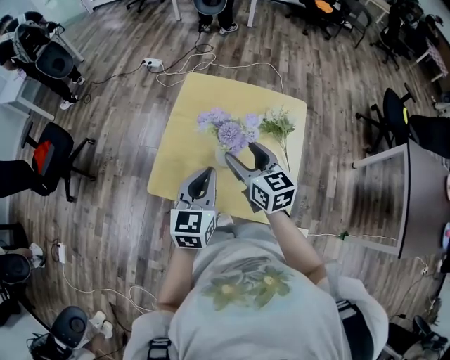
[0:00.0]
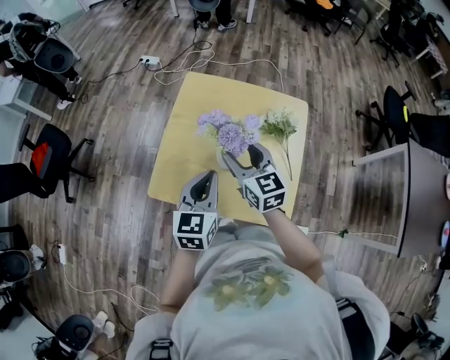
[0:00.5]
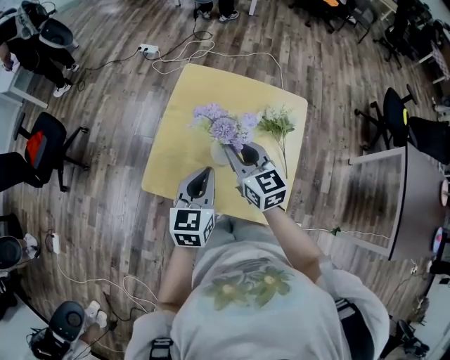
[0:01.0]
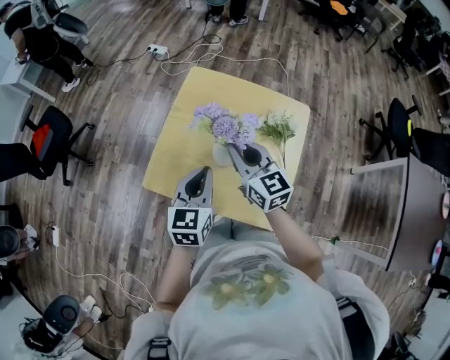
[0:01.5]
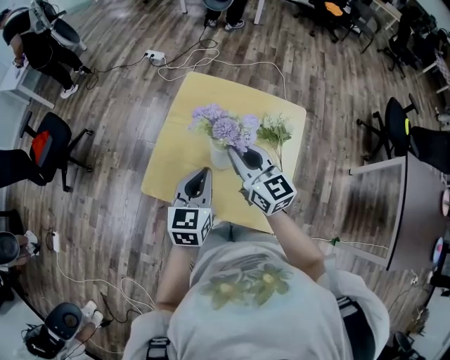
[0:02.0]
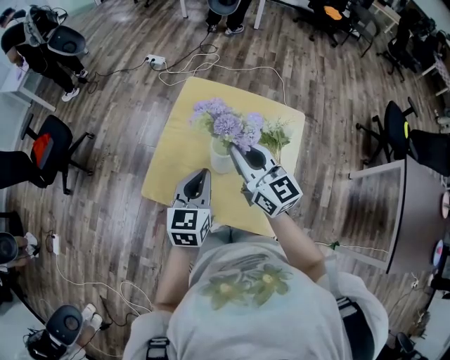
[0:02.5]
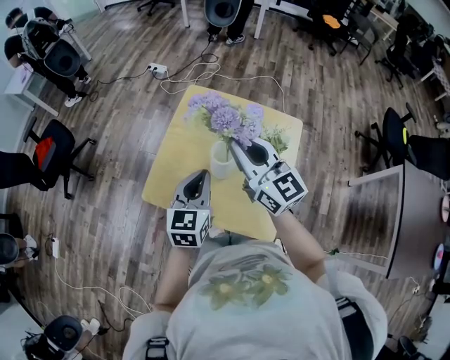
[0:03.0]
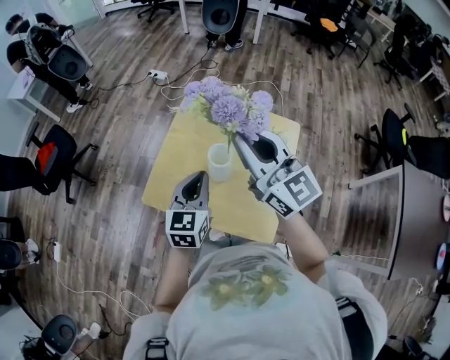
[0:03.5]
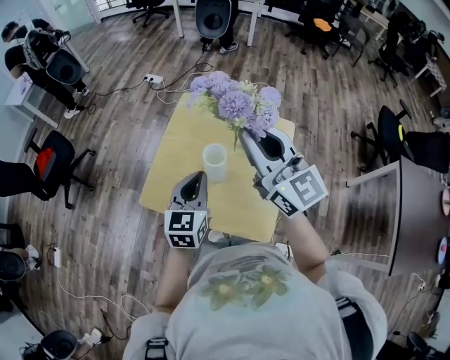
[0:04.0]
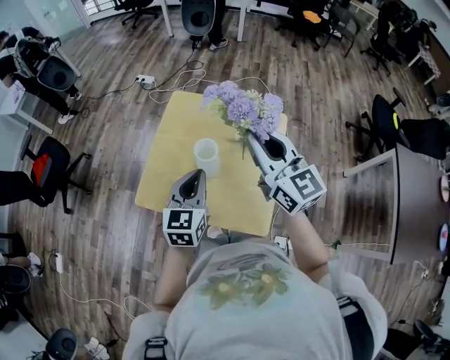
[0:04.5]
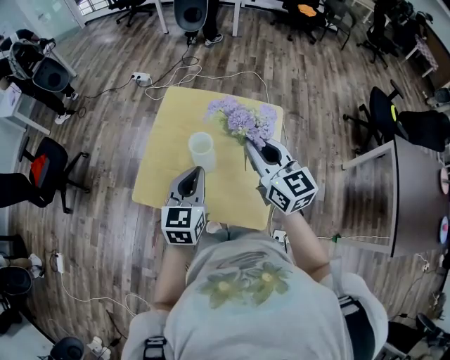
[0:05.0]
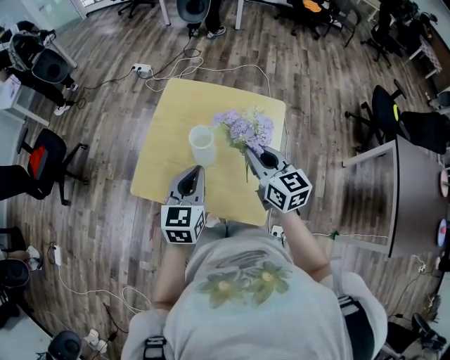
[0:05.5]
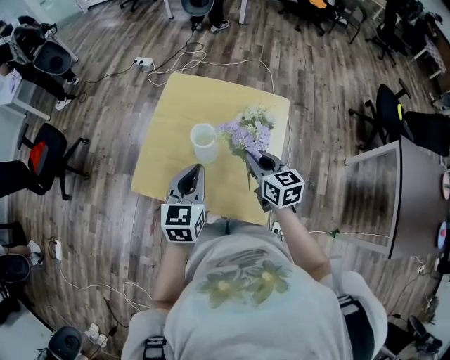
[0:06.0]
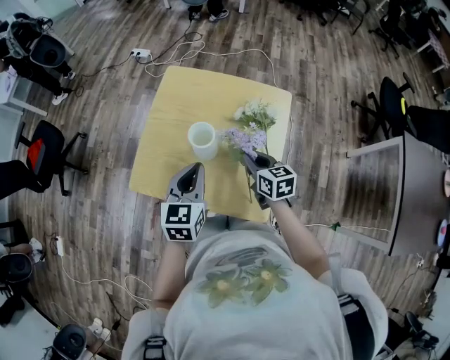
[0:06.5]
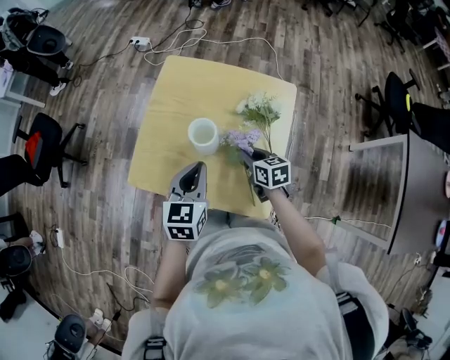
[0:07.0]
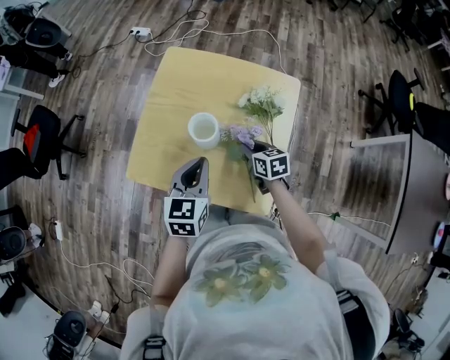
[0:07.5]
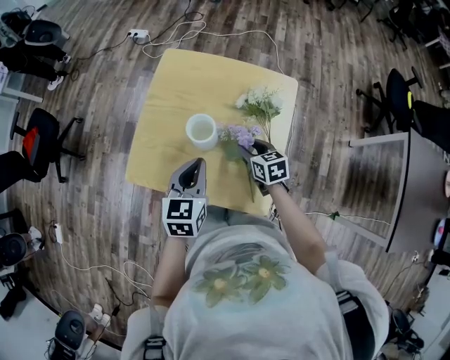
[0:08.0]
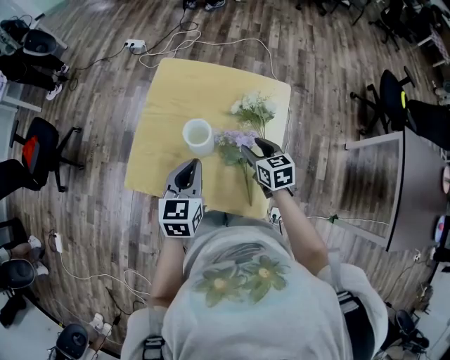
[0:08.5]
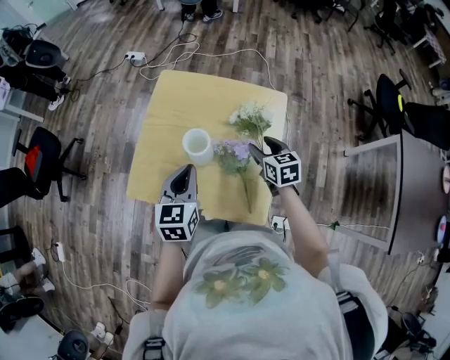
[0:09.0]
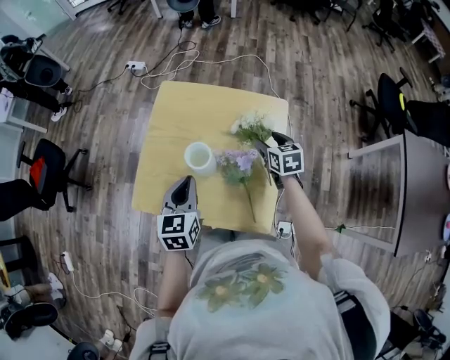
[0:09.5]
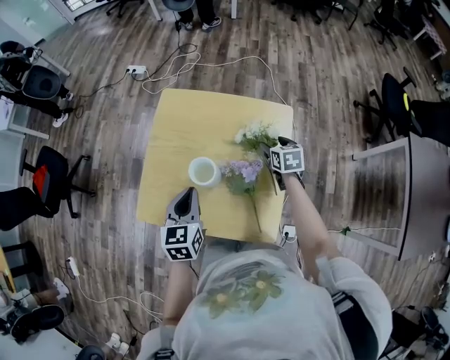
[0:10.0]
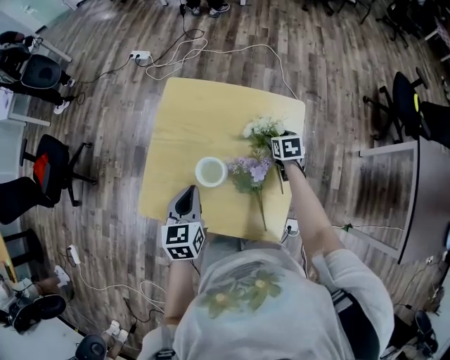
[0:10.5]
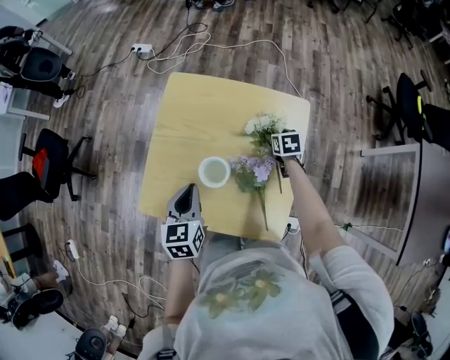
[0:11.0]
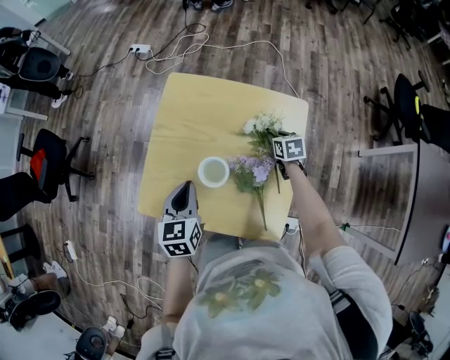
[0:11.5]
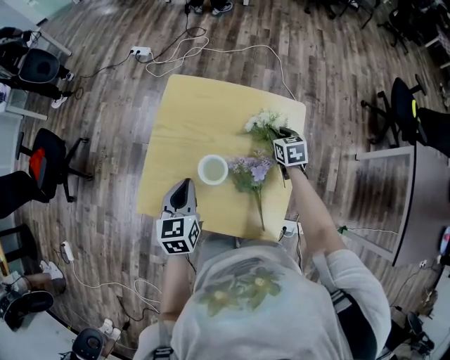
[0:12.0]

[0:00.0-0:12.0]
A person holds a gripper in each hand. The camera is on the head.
0:00.0 to 0:02.0: The right gripper moves about 5 cm, and closes.
0:02.0 to 0:04.0: The left gripper ends up approximately 5 cm from where it was. Meanwhile the right gripper goes some 20 cm upward.
0:04.0 to 0:06.0: The right gripper is displaced downward by roughly 25 cm, and points its fingers about 30 degrees further downward.
0:06.0 to 0:08.0: The left gripper goes about 5 cm downward, while the right gripper travels downward by roughly 15 cm, turns by approximately 20 degrees, and opens.
0:08.0 to 0:10.0: The left gripper is displaced forward by roughly 5 cm, while the right gripper moves to the right and forward, about 20 cm, and opens up.
0:10.0 to 0:12.0: The right gripper travels forward by some 5 cm, goes downward and returns, roughly 10 cm each way, and closes its fingers. The left gripper moves some 5 cm.

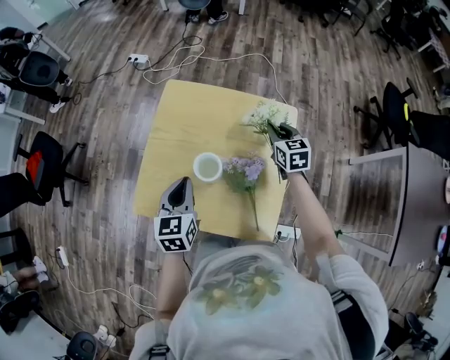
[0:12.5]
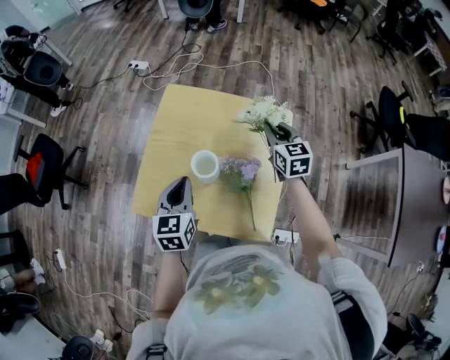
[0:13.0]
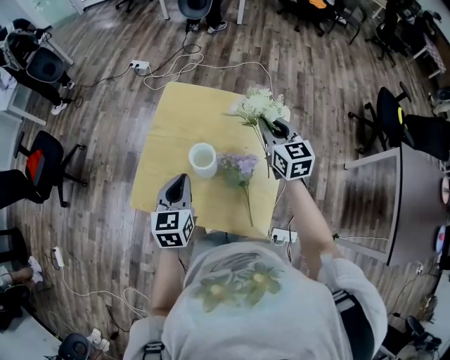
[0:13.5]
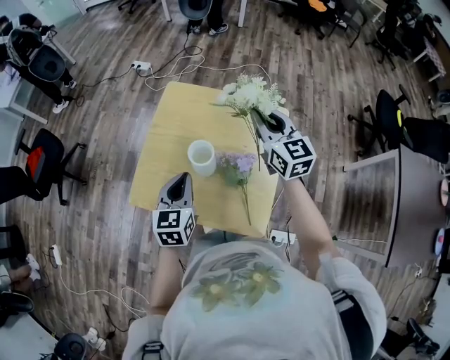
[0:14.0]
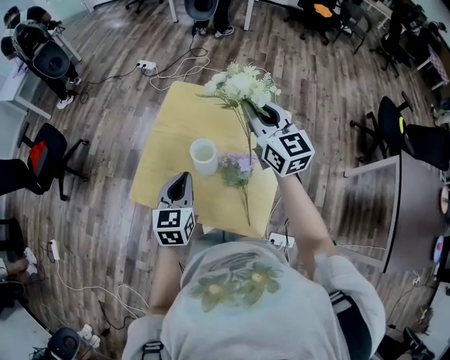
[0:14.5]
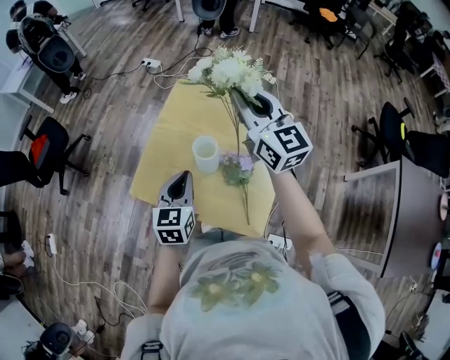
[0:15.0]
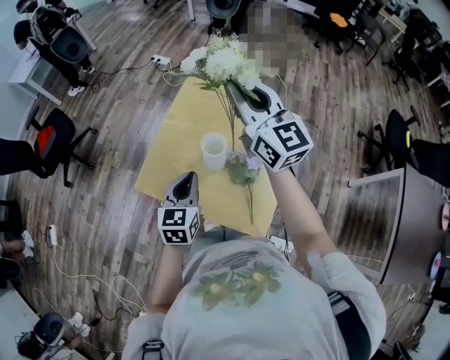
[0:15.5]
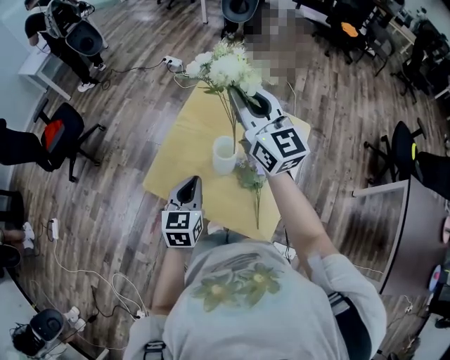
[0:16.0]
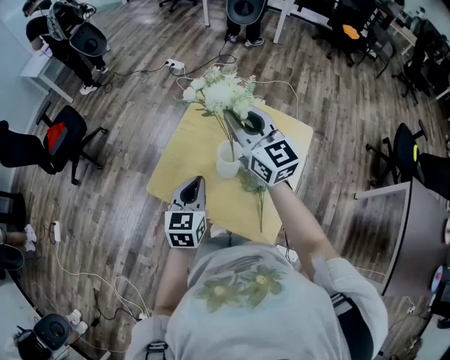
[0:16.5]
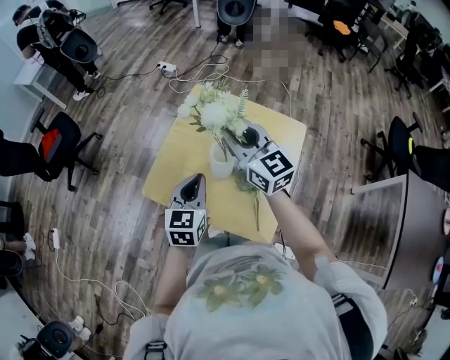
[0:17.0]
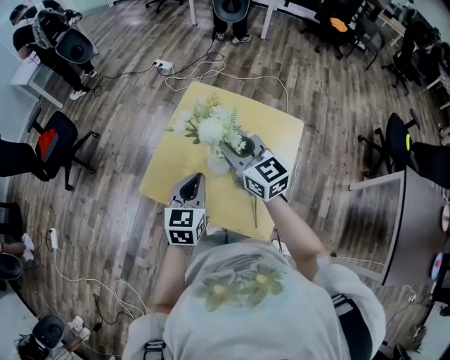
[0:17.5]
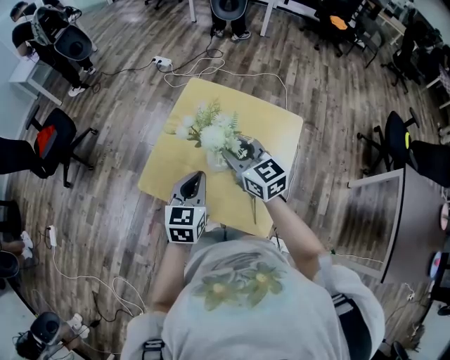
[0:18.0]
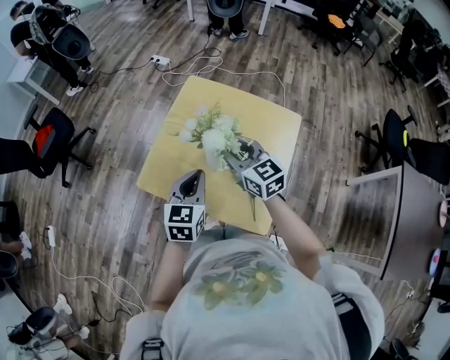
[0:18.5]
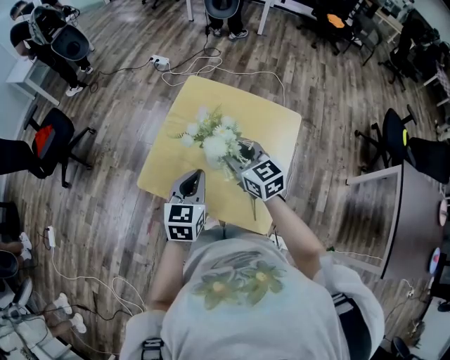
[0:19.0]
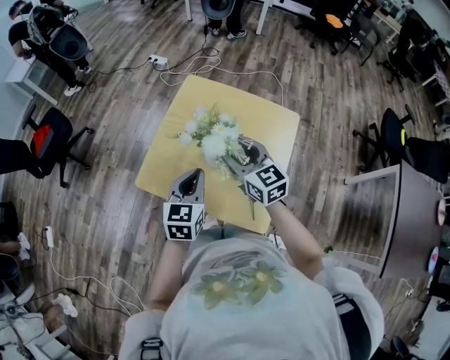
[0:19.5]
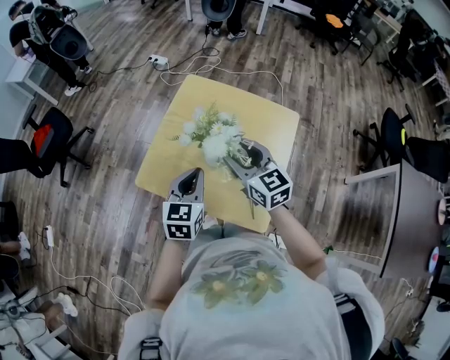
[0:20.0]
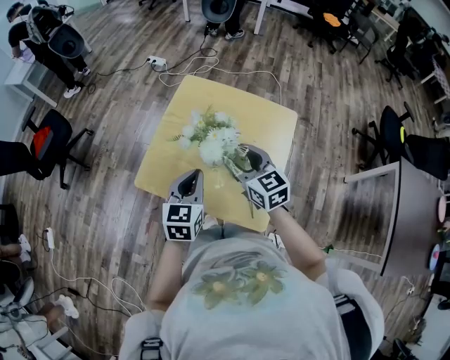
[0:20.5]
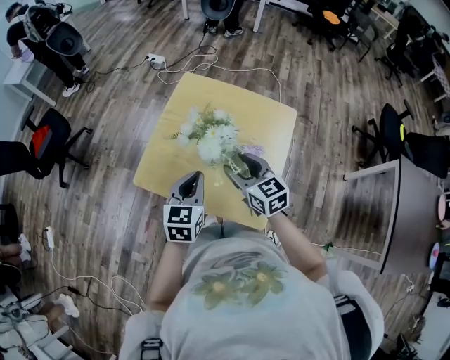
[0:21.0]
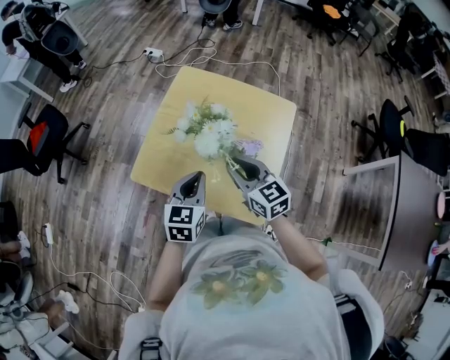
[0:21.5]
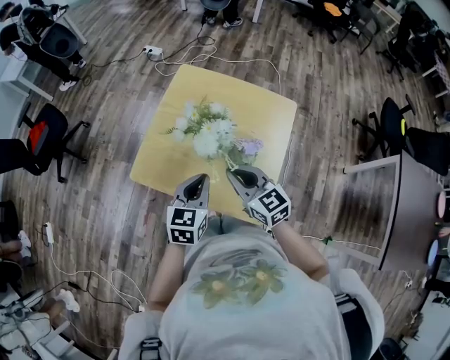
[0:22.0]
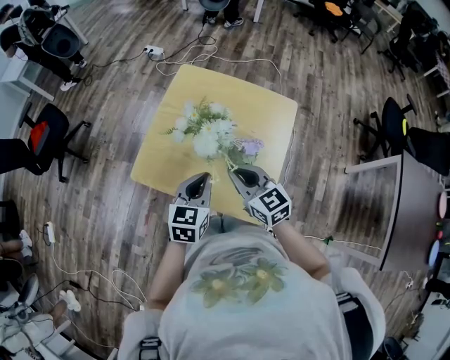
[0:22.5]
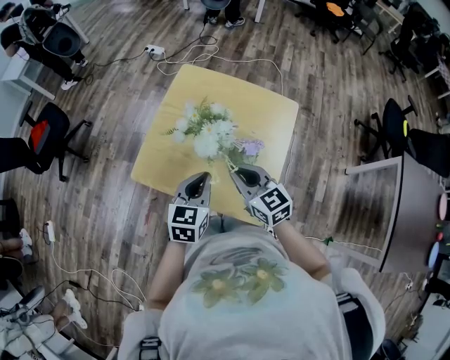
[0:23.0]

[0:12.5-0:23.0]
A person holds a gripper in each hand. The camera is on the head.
0:12.5 to 0:14.5: The right gripper shifts roughly 25 cm upward and to the left, and tilts its fingers some 30 degrees upward, while the left gripper is displaced backward by about 10 cm.
0:14.5 to 0:16.5: The left gripper is displaced to the left by roughly 5 cm; the right gripper shifts about 15 cm to the left.
0:16.5 to 0:19.0: The right gripper moves downward and backward, some 15 cm, and swivels some 20 degrees.
0:19.0 to 0:21.0: The right gripper shifts about 5 cm backward.
0:21.0 to 0:23.0: The right gripper closes its fingers.

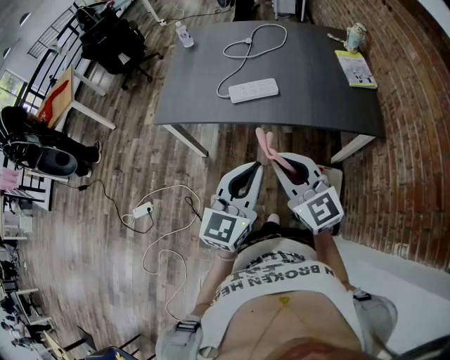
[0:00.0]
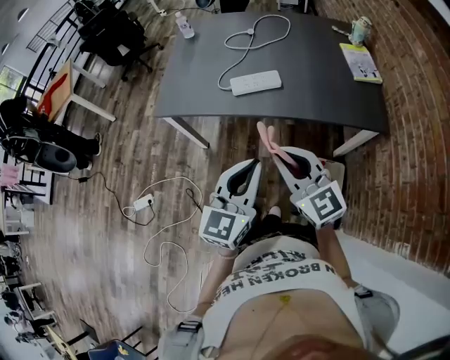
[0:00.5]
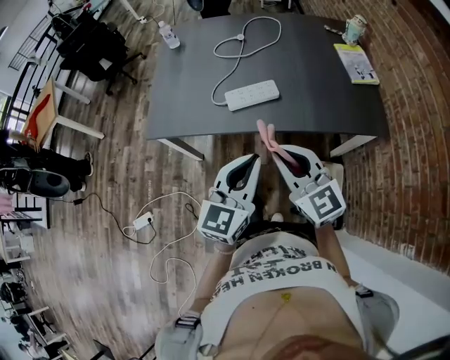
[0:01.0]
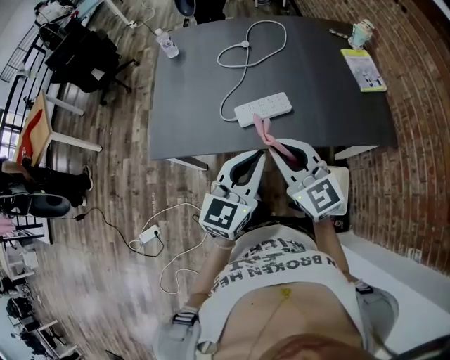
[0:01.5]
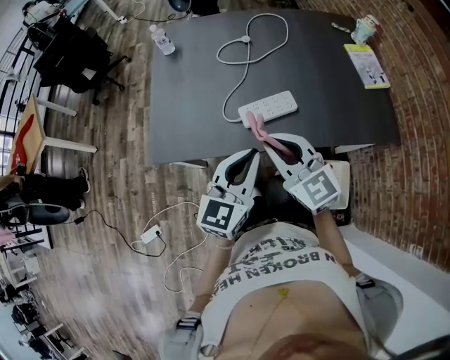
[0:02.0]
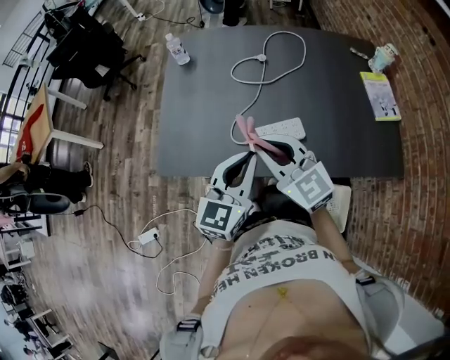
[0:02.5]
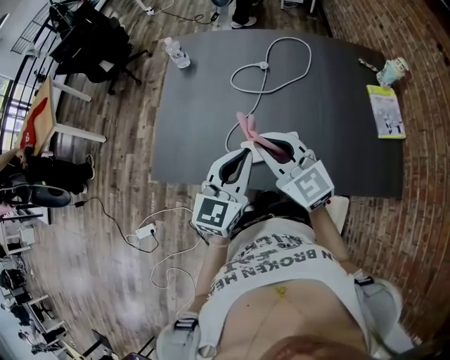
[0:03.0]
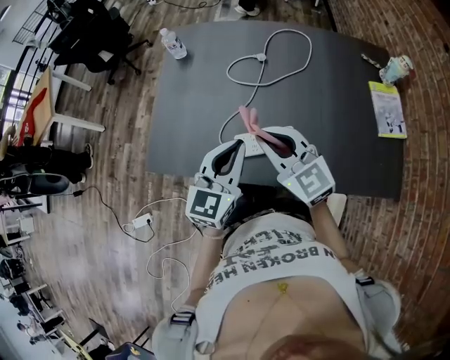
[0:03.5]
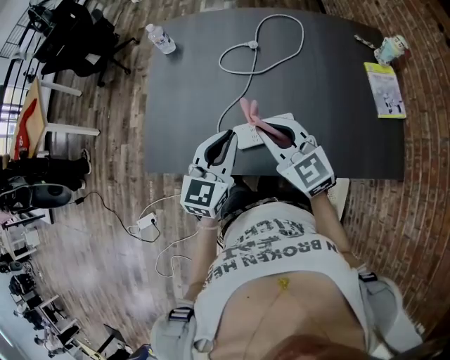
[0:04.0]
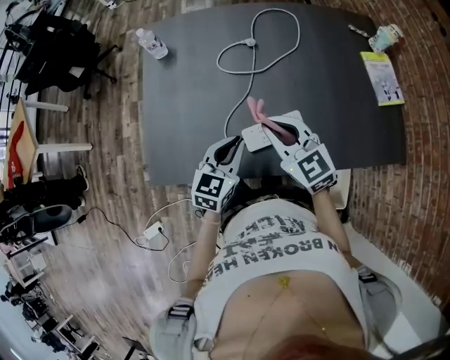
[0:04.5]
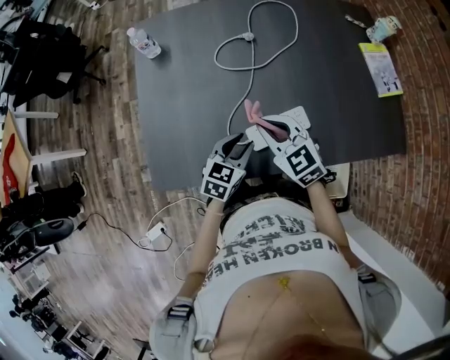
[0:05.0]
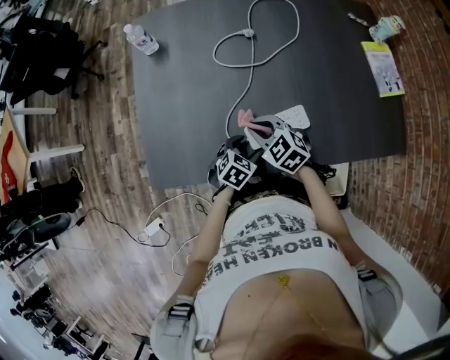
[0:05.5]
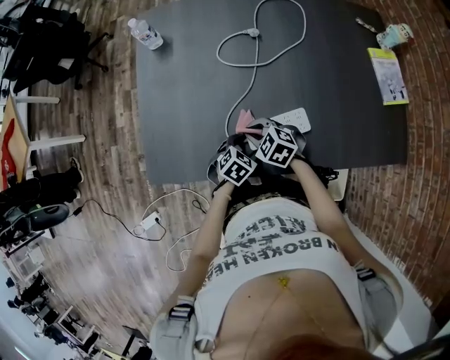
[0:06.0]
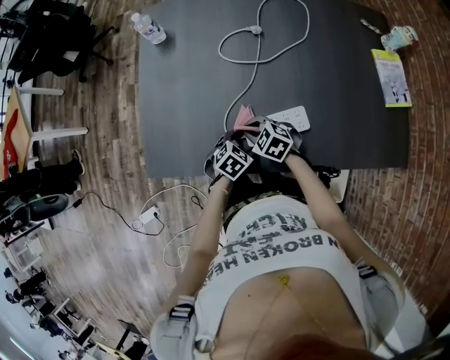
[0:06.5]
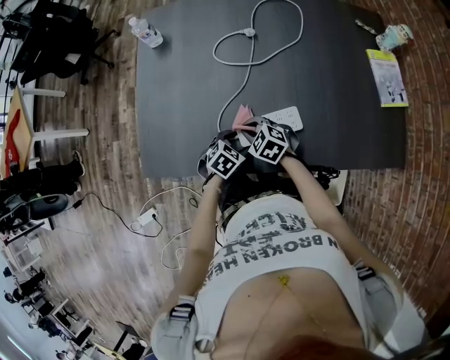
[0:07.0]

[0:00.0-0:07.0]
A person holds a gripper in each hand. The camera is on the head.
0:00.0 to 0:02.0: Both grippers travel together forward and to the left, some 30 cm.
0:02.0 to 0:03.5: The left gripper goes approximately 15 cm forward, while the right gripper goes roughly 15 cm forward and to the right.
0:03.5 to 0:05.0: The left gripper moves downward, roughly 20 cm, changes its angle by about 30 degrees, and opens up. Meanwhile the right gripper is displaced downward, forward and to the left by some 15 cm, and changes its angle by approximately 20 degrees.
0:05.0 to 0:07.0: The two grippers go some 15 cm downward. The right gripper changes its angle by about 30 degrees, while the left gripper changes its angle by some 30 degrees, and opens its fingers.
